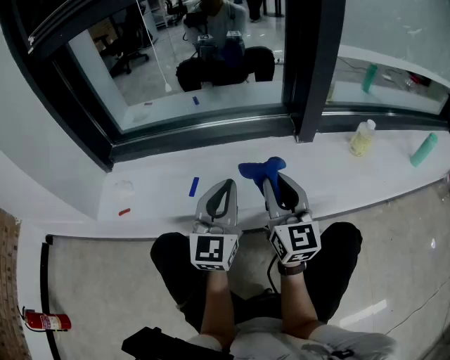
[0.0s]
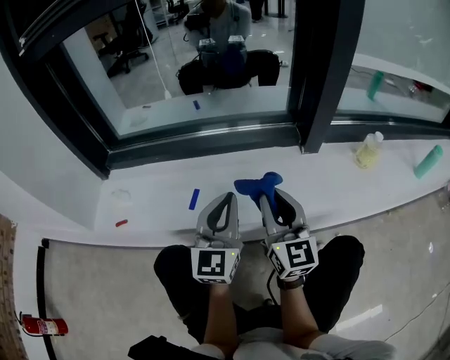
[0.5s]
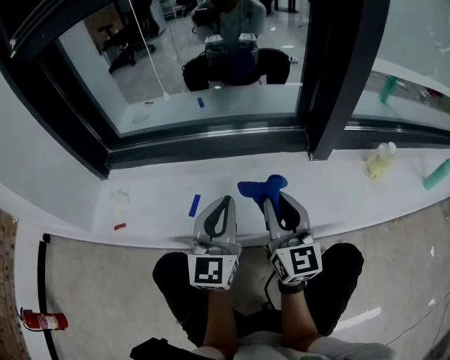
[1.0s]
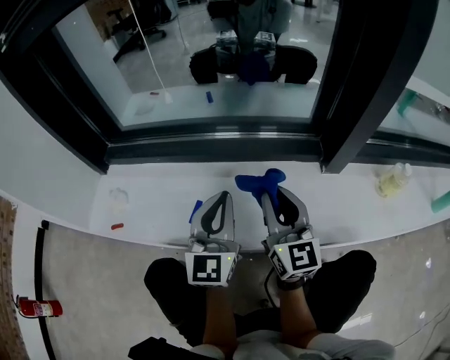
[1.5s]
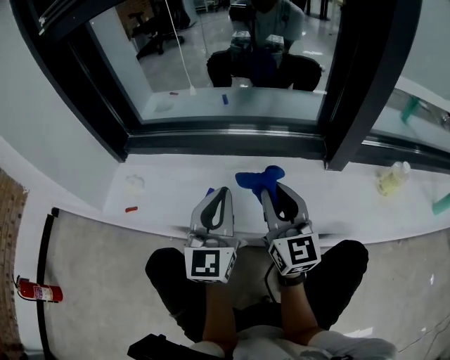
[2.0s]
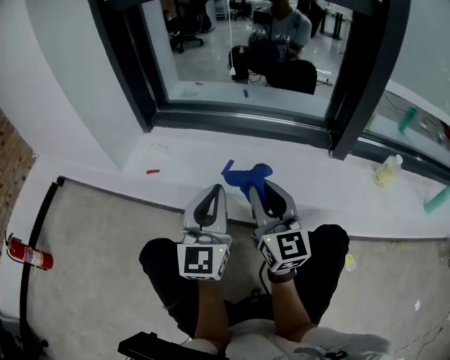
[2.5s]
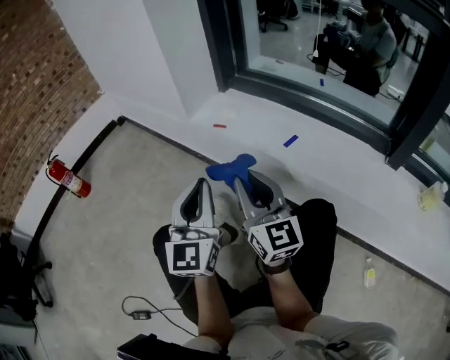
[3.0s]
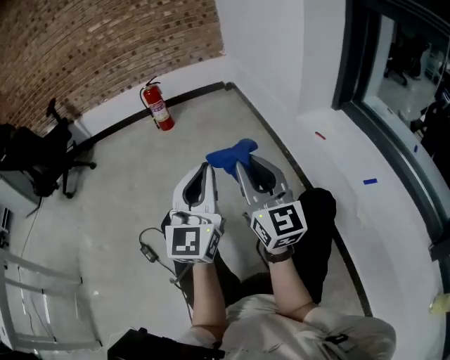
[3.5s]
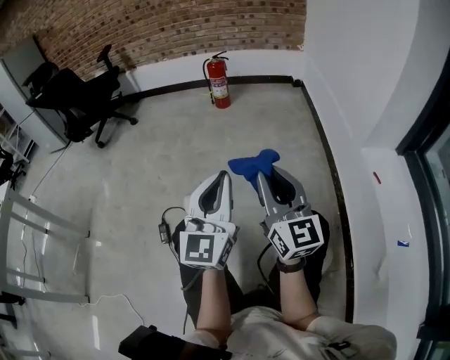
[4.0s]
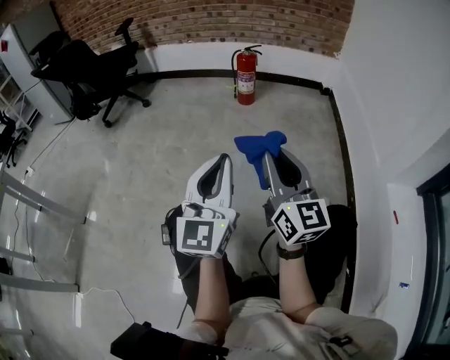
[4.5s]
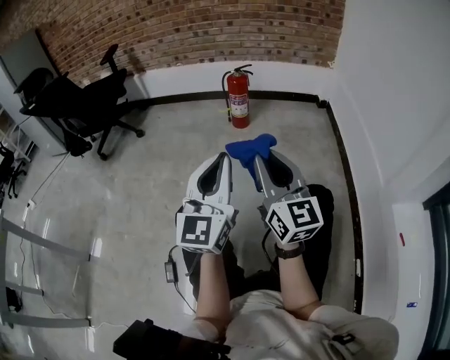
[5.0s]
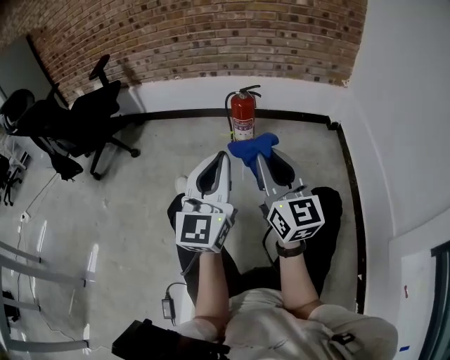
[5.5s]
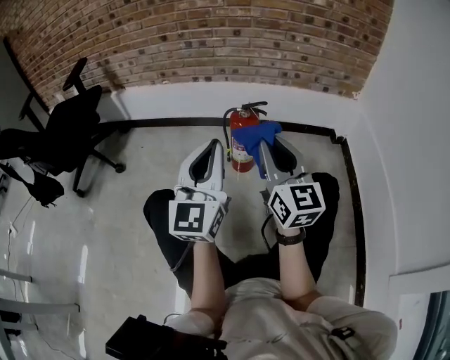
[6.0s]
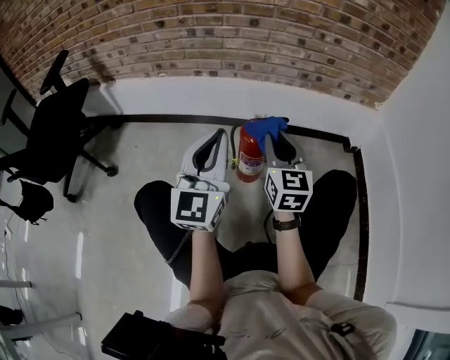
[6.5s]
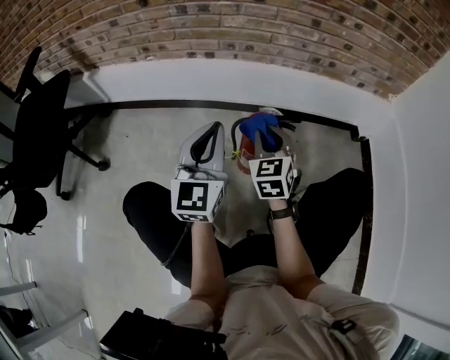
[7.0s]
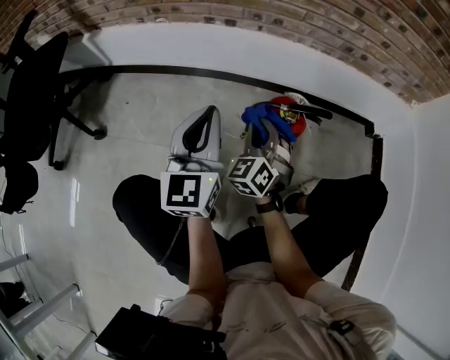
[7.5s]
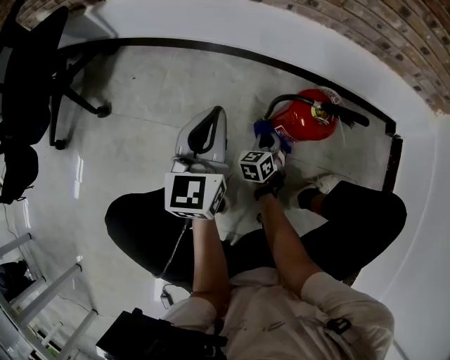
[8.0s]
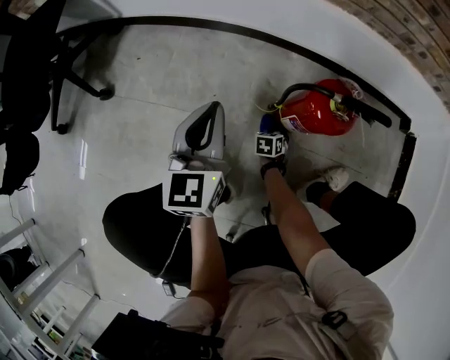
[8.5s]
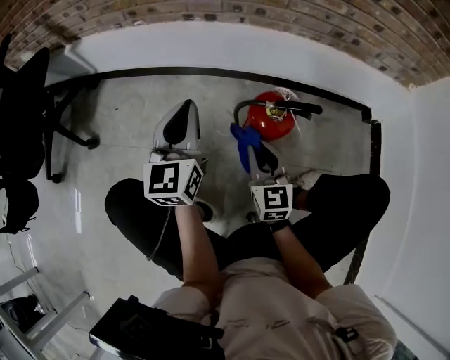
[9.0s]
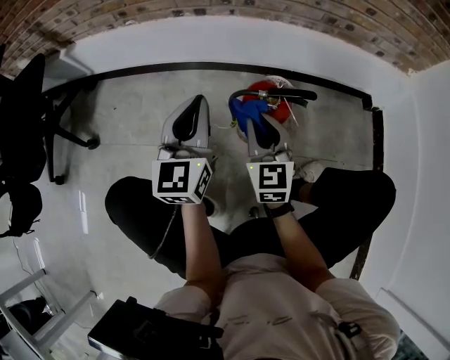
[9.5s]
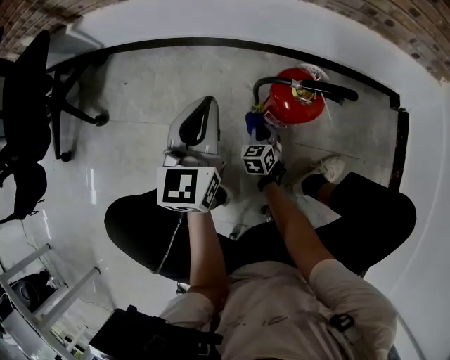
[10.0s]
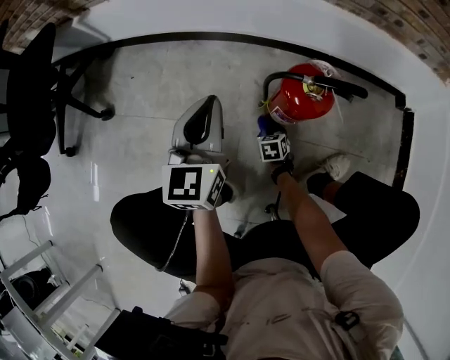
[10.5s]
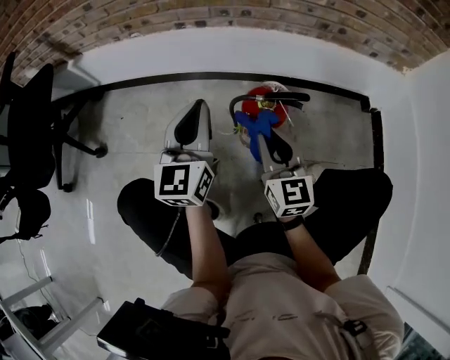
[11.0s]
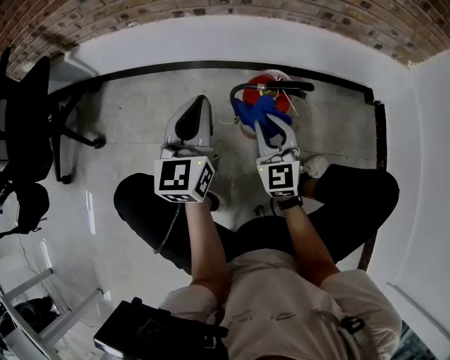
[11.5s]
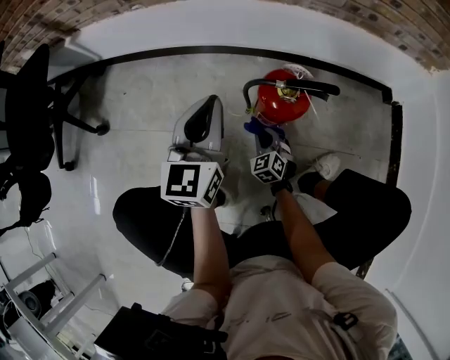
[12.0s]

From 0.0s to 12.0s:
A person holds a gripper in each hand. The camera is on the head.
From 0.0s to 2.0s: The grippers both shift forward by approximately 10 cm.
From 2.0s to 4.0s: The two grippers travel together, roughly 70 cm. The right gripper changes its angle by some 90 degrees; the left gripper turns by some 80 degrees.
From 4.0s to 6.0s: The two grippers travel together, forward, some 70 cm.
From 6.0s to 8.0s: The right gripper heads downward and forward, covering roughly 60 cm, and tilts its fingers about 60 degrees downward. The left gripper goes about 40 cm forward, downward and to the left, and rotates about 30 degrees.
From 8.0s to 10.0s: The right gripper moves up and down over roughly 40 cm, changing direction 2 times.
From 10.0s to 12.0s: The left gripper goes upward and returns, about 5 cm each way, while the right gripper moves up and down over about 40 cm, changing direction 2 times, and swivels approximately 20 degrees.

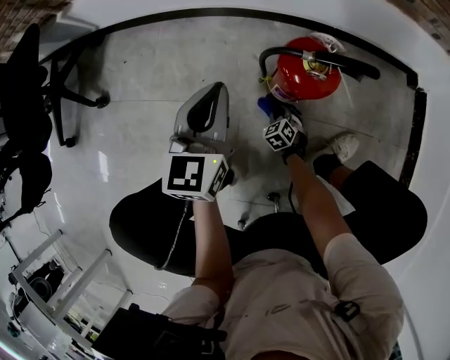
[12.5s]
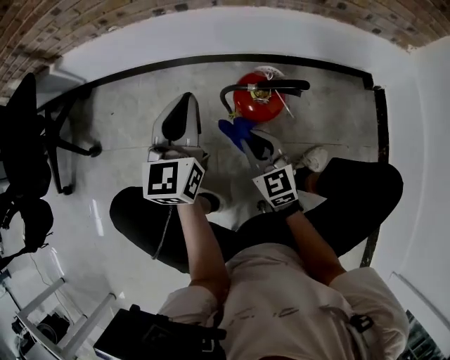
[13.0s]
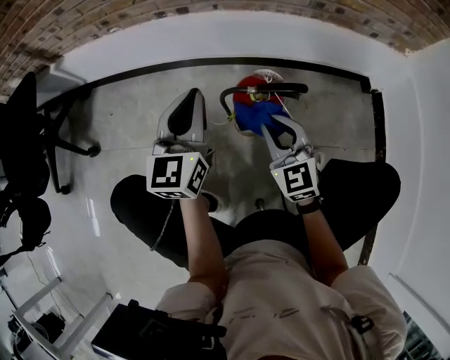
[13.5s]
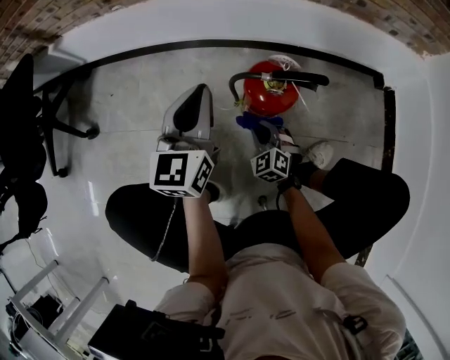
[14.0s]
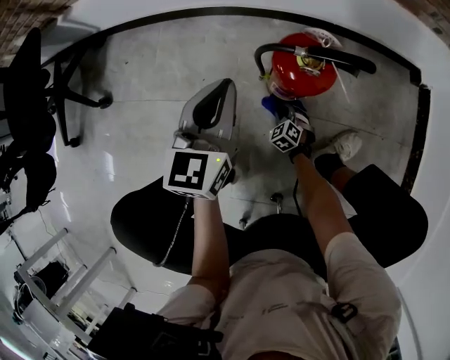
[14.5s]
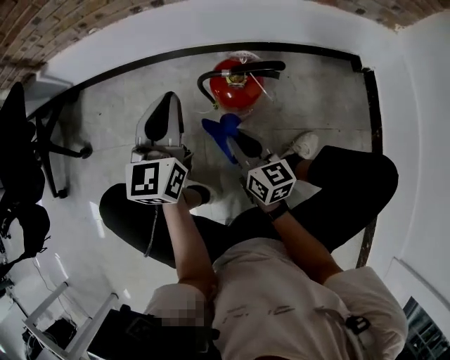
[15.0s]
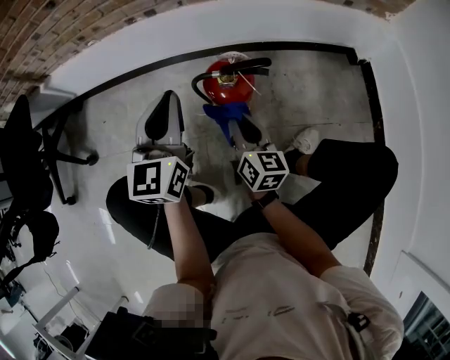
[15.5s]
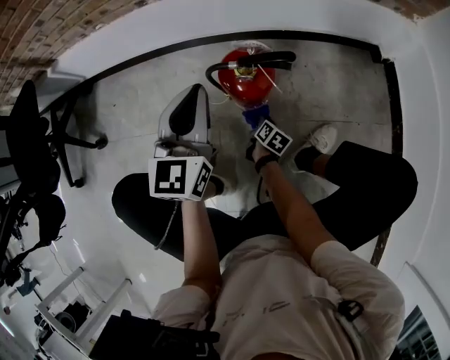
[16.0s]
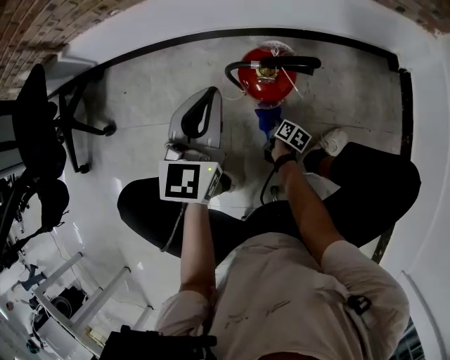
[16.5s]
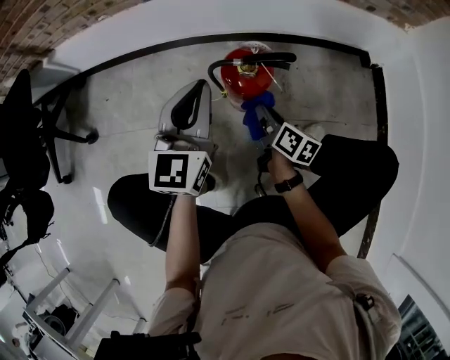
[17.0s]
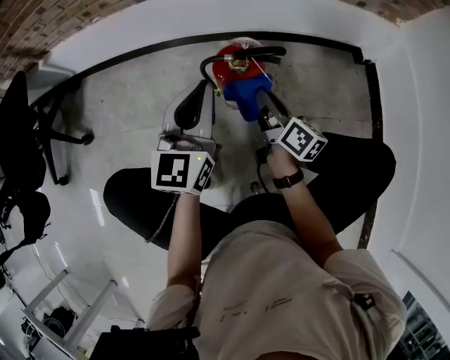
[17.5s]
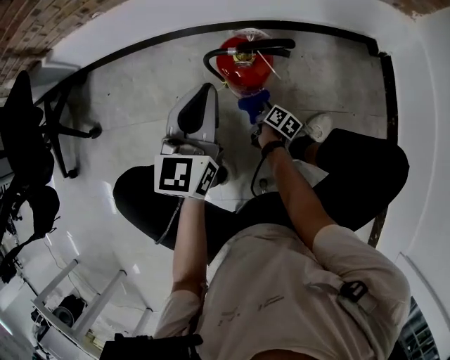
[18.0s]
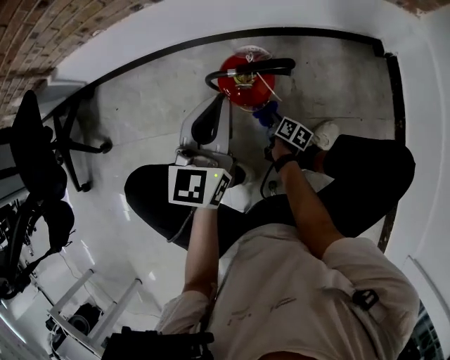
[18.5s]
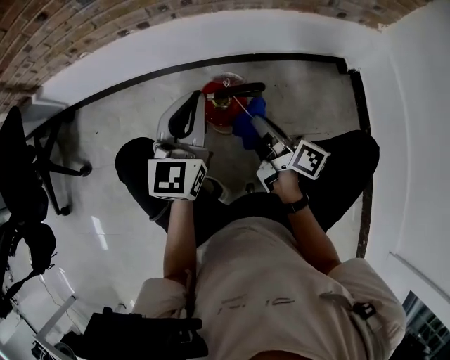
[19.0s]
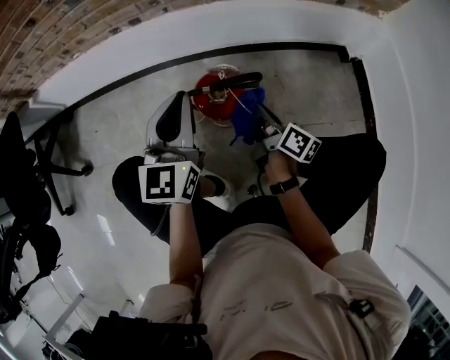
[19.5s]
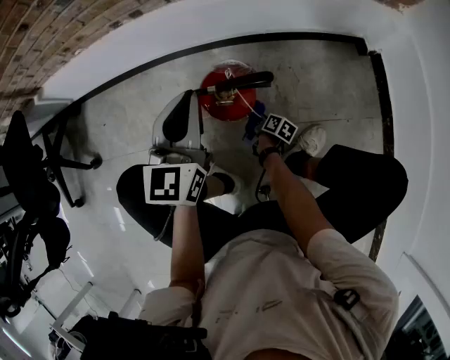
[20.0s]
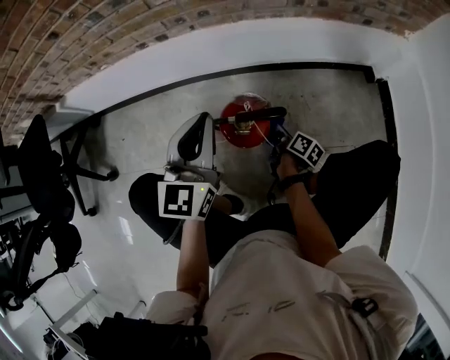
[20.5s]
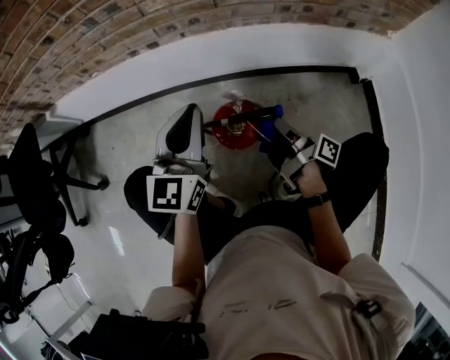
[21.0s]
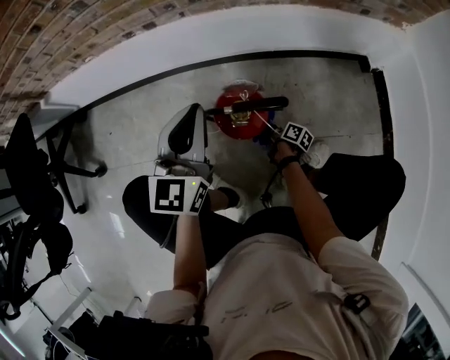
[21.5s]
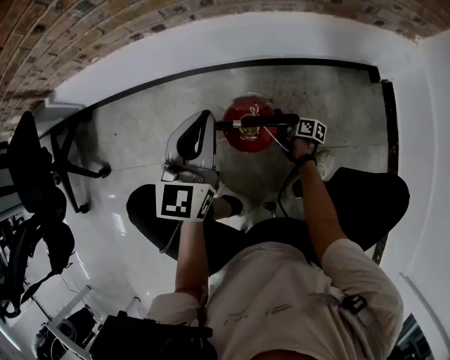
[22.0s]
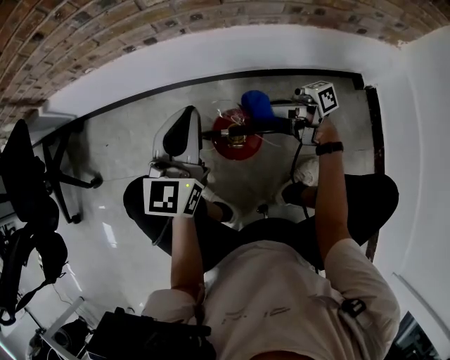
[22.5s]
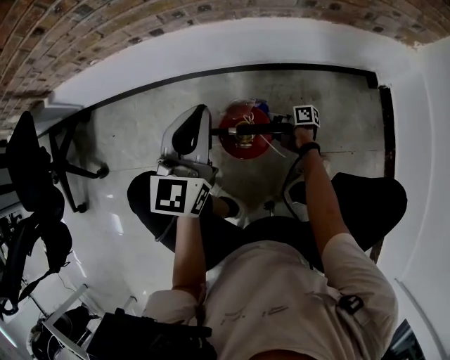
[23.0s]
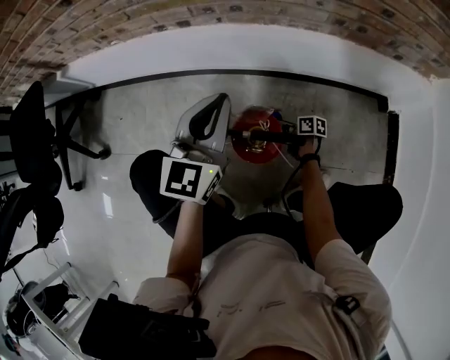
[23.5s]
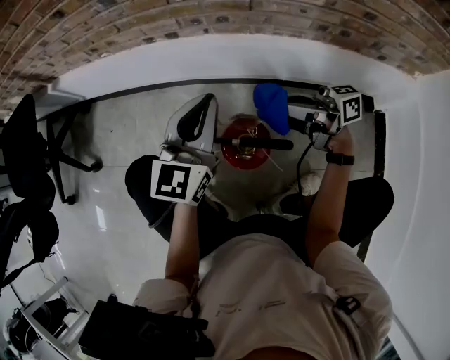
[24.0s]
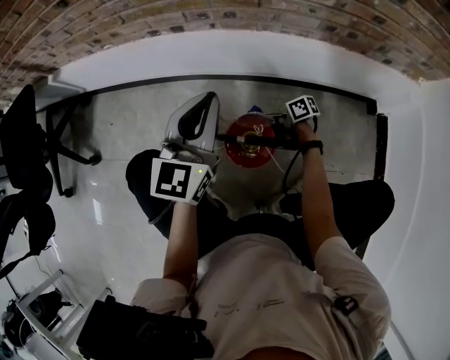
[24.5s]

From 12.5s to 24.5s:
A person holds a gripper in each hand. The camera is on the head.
From 12.5s to 14.5s: The right gripper travels upward and back again, roughly 40 cm each way. Meanwhile the left gripper reaches approximately 10 cm upward, then returns.
From 14.5s to 16.5s: The right gripper heads to the right, covering about 5 cm, travels upward and back again, some 35 cm each way, and rolls clockwise, seen from behind, by about 100 degrees, while the left gripper travels upward by approximately 5 cm.
From 16.5s to 18.5s: The left gripper goes approximately 5 cm to the right, while the right gripper reaches some 35 cm upward, then returns.
From 18.5s to 20.5s: The right gripper swings up and down, roughly 40 cm each way, with 2 reversals, while the left gripper goes some 5 cm forward.
From 20.5s to 22.5s: The right gripper moves up and down over roughly 35 cm, changing direction 2 times, and points its fingers some 50 degrees further upward.
From 22.5s to 24.5s: The right gripper swings up and down, about 40 cm each way, with 2 reversals, and tips its fingers downward by some 40 degrees.

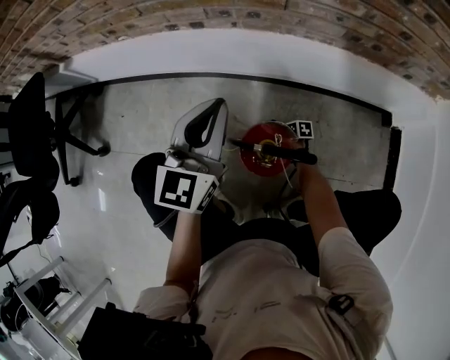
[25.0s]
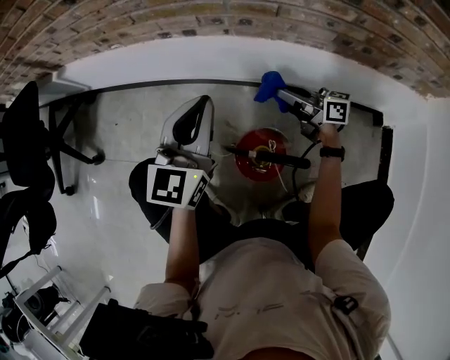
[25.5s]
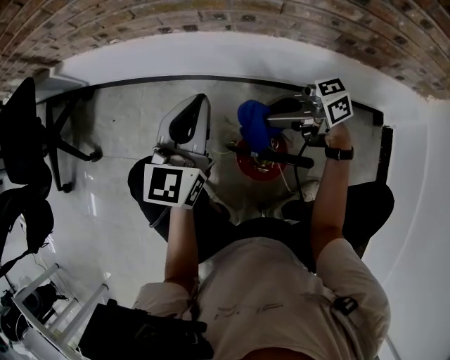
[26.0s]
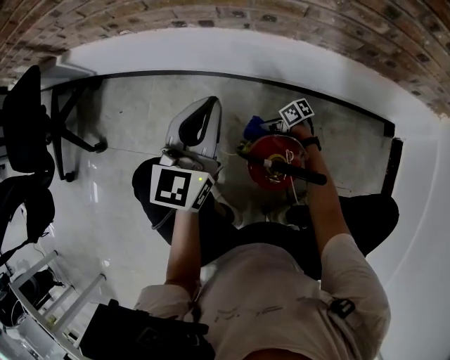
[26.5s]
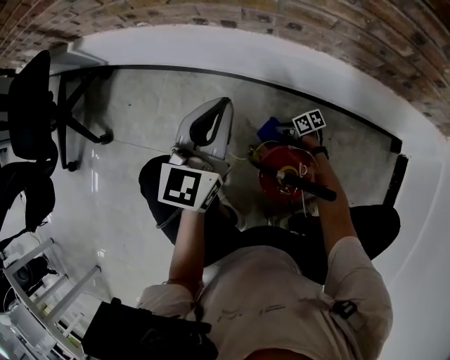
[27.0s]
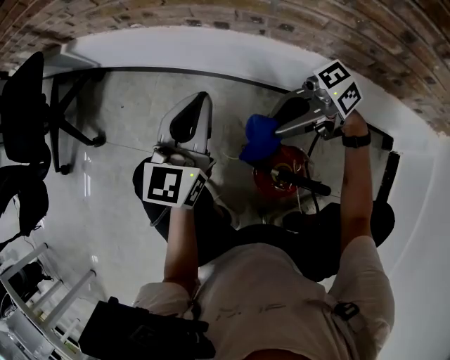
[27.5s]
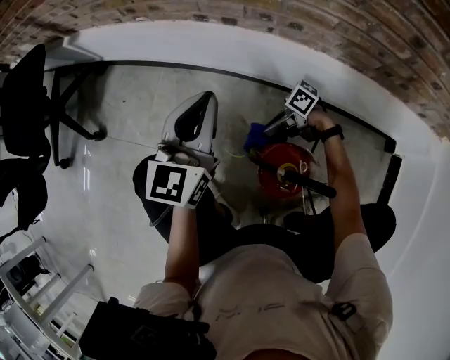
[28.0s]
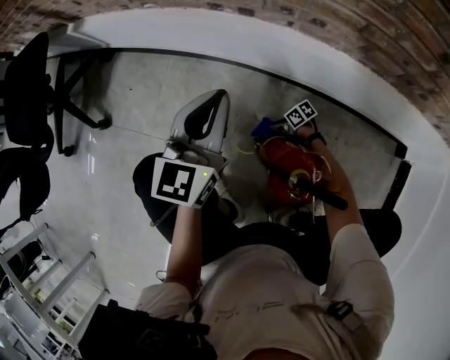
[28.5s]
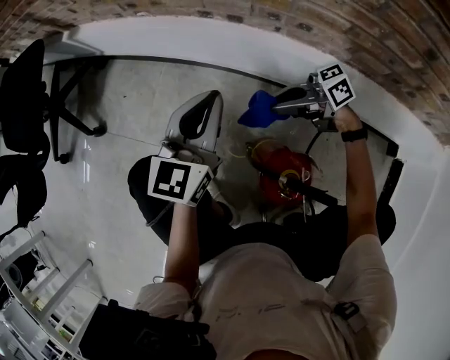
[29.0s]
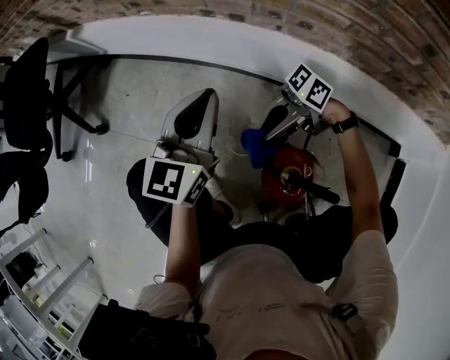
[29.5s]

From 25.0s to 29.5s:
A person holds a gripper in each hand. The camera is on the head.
From 25.0s to 27.0s: Both grippers move forward, some 5 cm. The right gripper goes upward and returns, roughly 40 cm each way, and swivels roughly 30 degrees.
From 27.0s to 29.5s: The right gripper moves up and down over approximately 50 cm, changing direction 2 times, and points its fingers about 40 degrees further upward.
